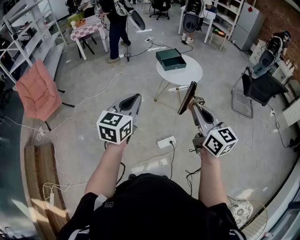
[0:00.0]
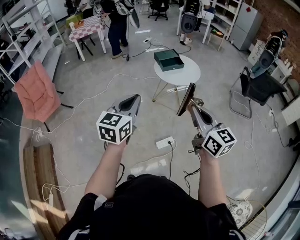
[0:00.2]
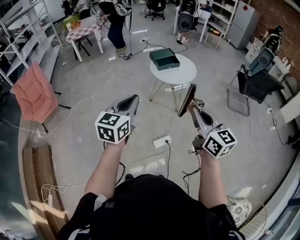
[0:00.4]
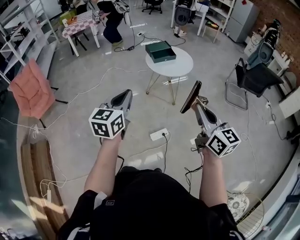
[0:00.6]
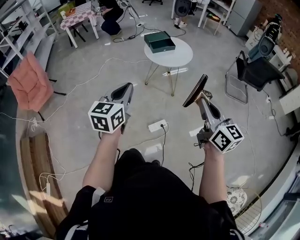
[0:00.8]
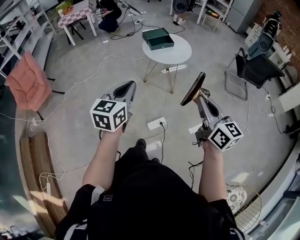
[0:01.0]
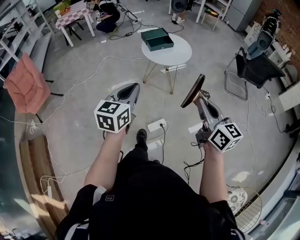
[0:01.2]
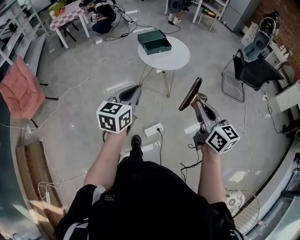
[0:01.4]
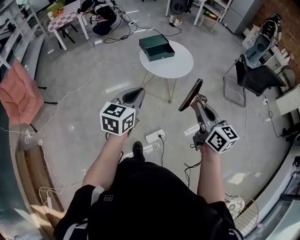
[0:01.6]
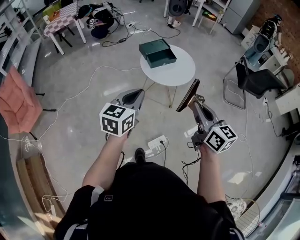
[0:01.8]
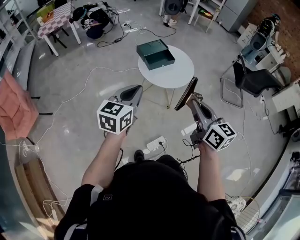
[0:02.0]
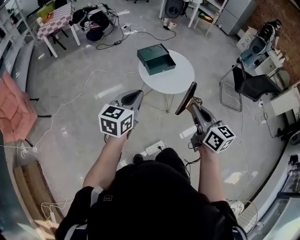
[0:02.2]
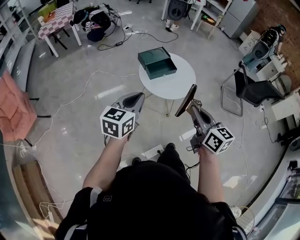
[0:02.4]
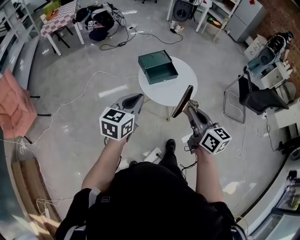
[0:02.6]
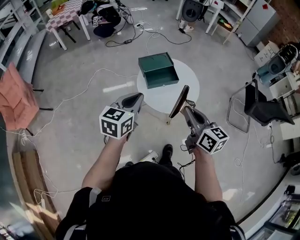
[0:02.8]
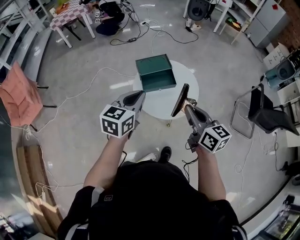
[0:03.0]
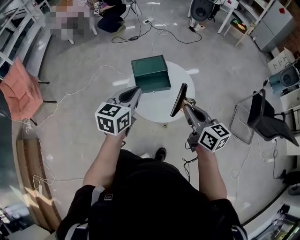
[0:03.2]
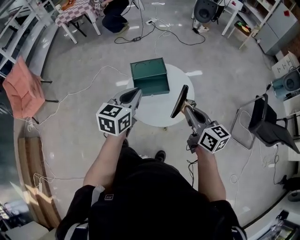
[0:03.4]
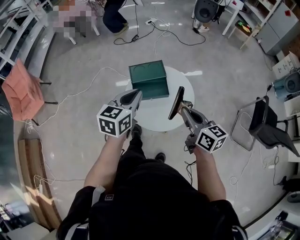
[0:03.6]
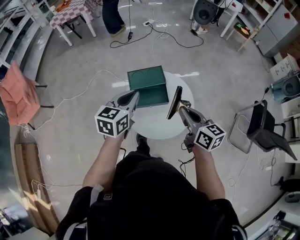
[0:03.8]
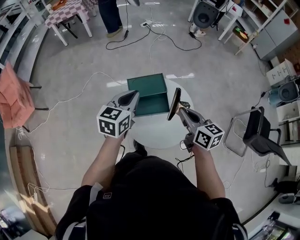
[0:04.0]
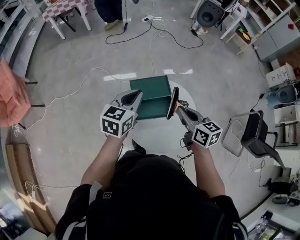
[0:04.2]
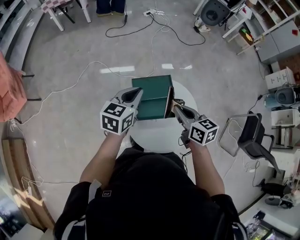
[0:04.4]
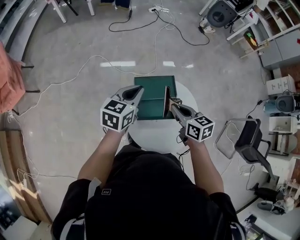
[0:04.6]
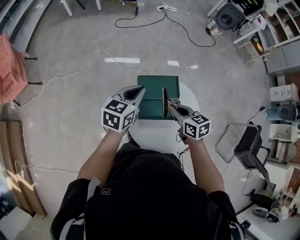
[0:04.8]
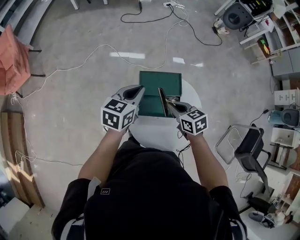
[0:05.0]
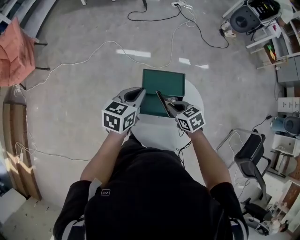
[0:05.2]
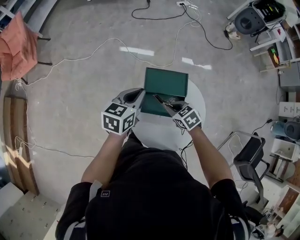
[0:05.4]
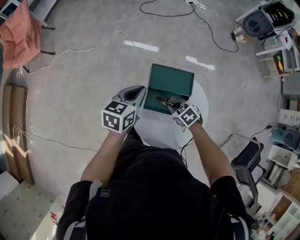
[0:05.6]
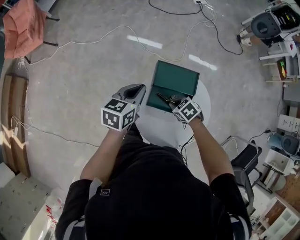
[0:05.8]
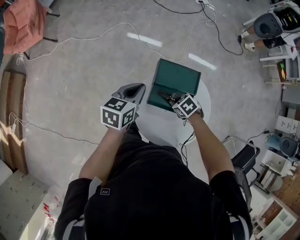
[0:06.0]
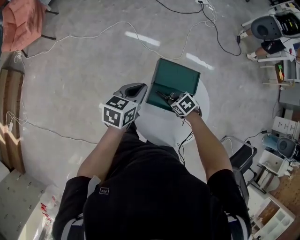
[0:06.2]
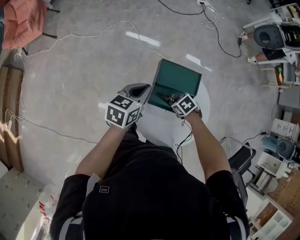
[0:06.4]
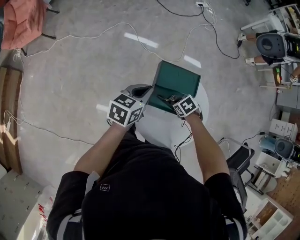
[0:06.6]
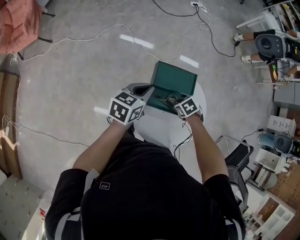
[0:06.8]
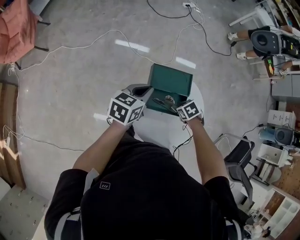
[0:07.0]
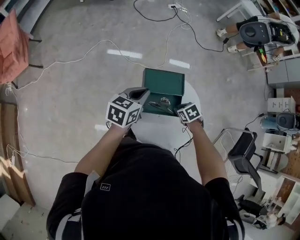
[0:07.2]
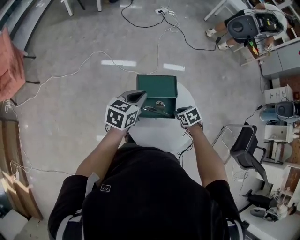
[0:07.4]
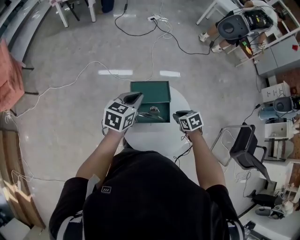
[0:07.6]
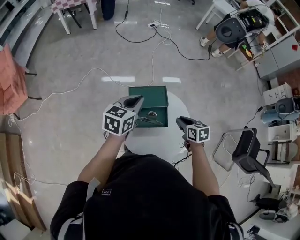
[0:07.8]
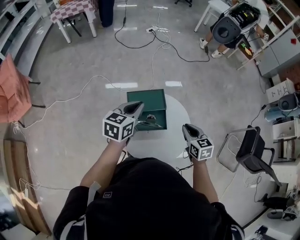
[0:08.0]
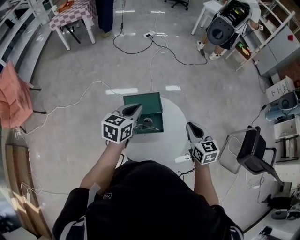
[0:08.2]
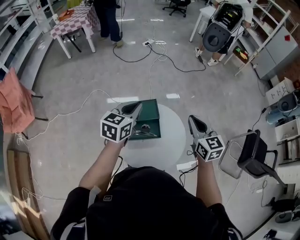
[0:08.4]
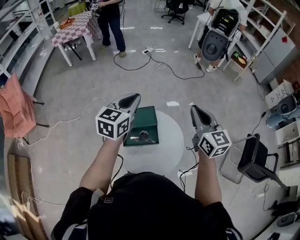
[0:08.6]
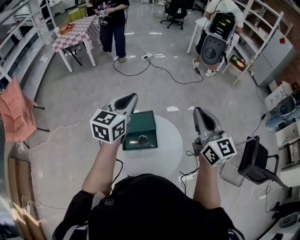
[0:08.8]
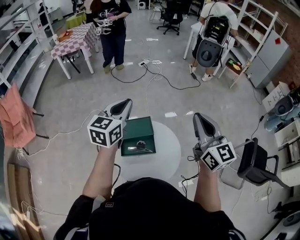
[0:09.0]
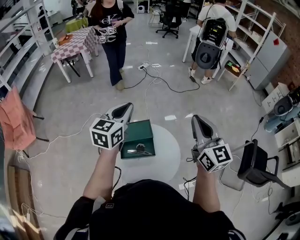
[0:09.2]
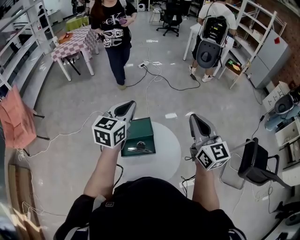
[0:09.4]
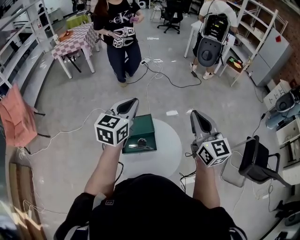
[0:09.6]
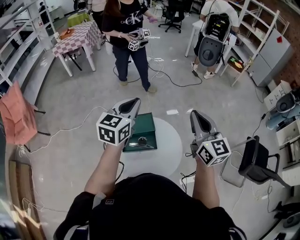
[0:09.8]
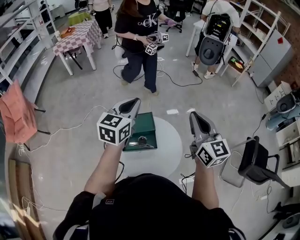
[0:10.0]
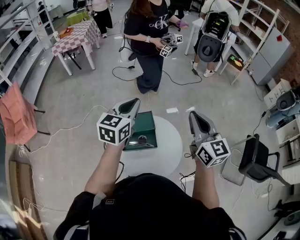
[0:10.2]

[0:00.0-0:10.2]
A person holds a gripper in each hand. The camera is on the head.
0:00.0 to 0:01.4: The right gripper moves to the right and downward, about 10 cm. The left gripper travels to the right, downward and forward by about 15 cm.
0:01.4 to 0:03.0: The grippers both shift forward by some 40 cm.
0:03.0 to 0:04.4: The two grippers go some 25 cm forward. The right gripper swivels some 20 degrees.
0:04.4 to 0:05.8: The left gripper moves downward, about 10 cm, and rotates roughly 20 degrees. Meanwhile the right gripper moves downward, approximately 20 cm, and points its fingers roughly 40 degrees further downward.
0:05.8 to 0:07.2: The right gripper shifts by approximately 5 cm, and turns by roughly 30 degrees.
0:07.2 to 0:08.8: The left gripper travels upward by approximately 25 cm, and turns by approximately 30 degrees; the right gripper is displaced upward by roughly 40 cm, and angles its fingers upward, by about 80 degrees.
0:08.8 to 0:10.2: The grippers stay close to where they were, moving slightly.

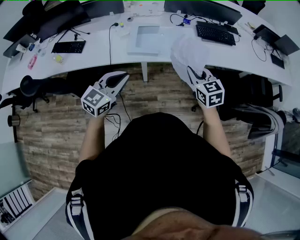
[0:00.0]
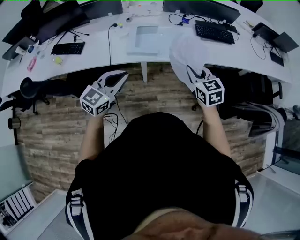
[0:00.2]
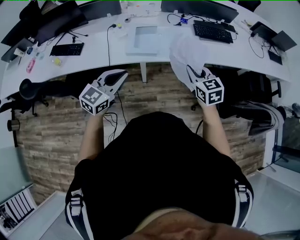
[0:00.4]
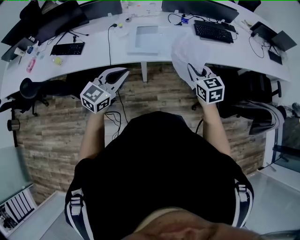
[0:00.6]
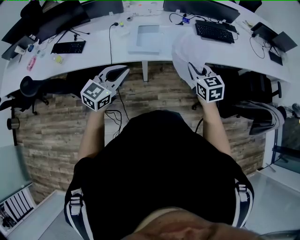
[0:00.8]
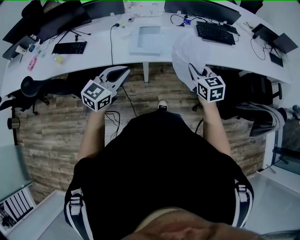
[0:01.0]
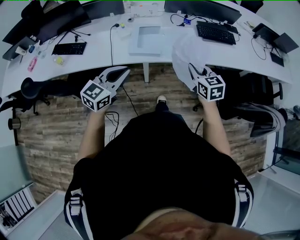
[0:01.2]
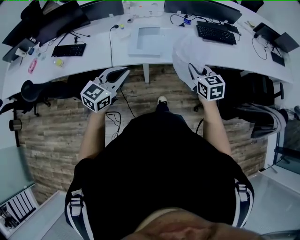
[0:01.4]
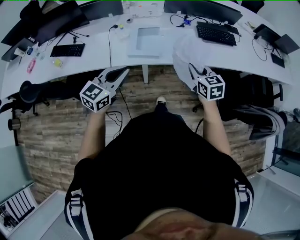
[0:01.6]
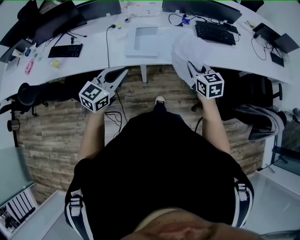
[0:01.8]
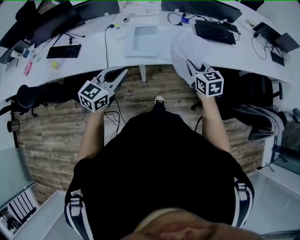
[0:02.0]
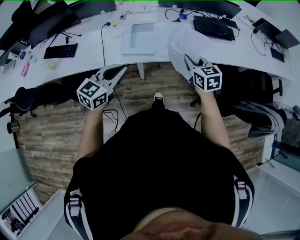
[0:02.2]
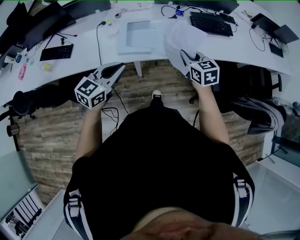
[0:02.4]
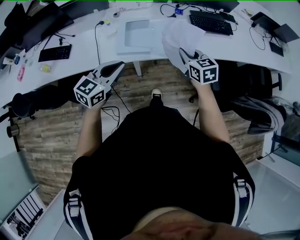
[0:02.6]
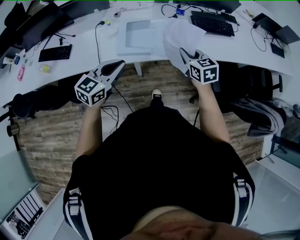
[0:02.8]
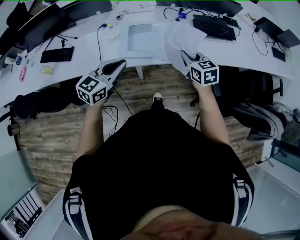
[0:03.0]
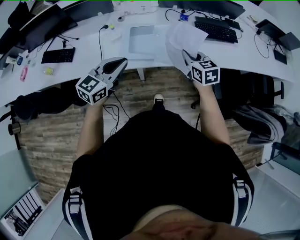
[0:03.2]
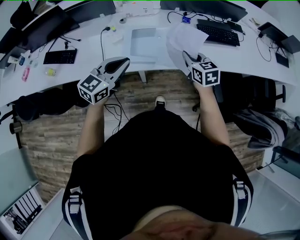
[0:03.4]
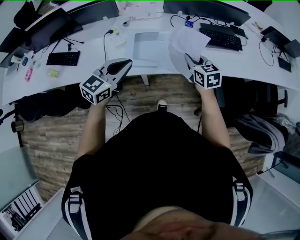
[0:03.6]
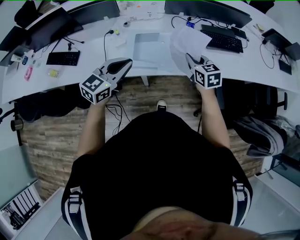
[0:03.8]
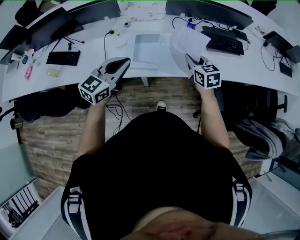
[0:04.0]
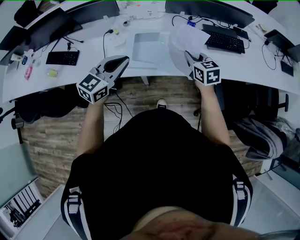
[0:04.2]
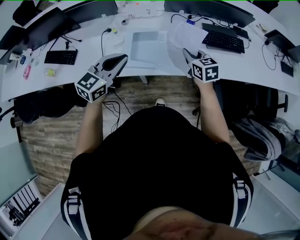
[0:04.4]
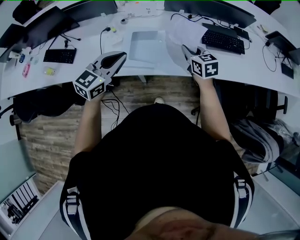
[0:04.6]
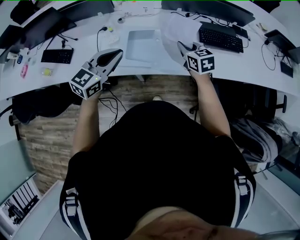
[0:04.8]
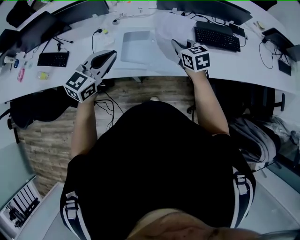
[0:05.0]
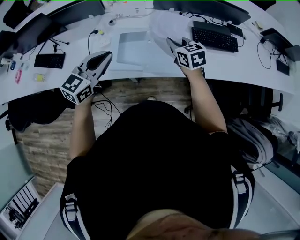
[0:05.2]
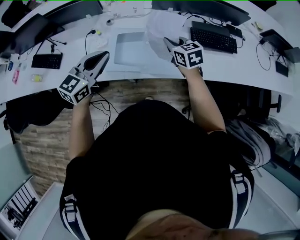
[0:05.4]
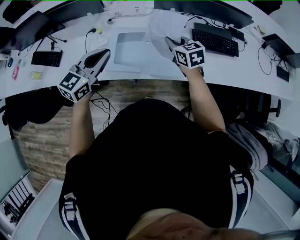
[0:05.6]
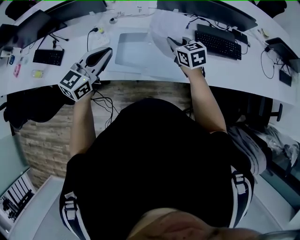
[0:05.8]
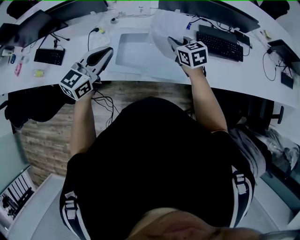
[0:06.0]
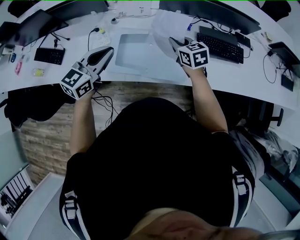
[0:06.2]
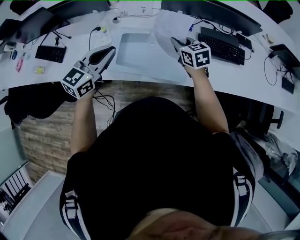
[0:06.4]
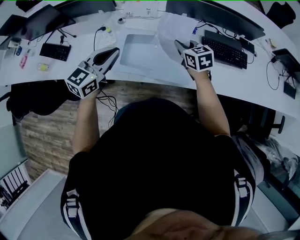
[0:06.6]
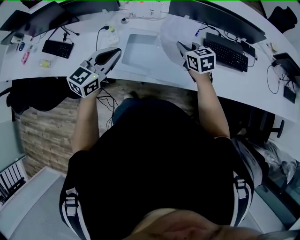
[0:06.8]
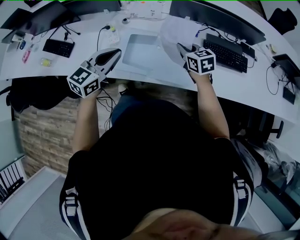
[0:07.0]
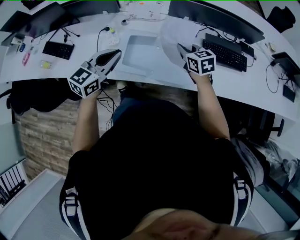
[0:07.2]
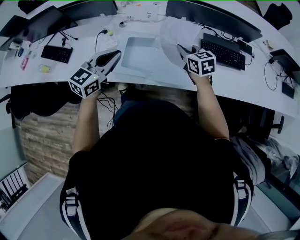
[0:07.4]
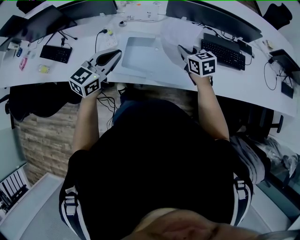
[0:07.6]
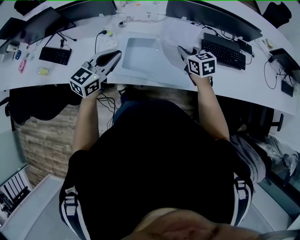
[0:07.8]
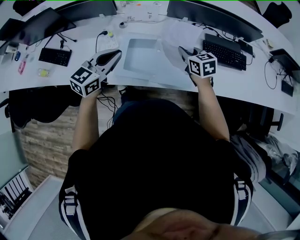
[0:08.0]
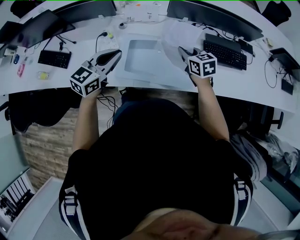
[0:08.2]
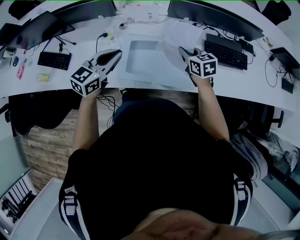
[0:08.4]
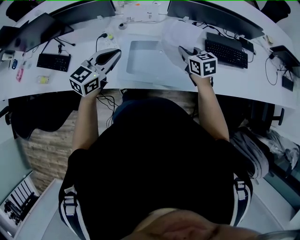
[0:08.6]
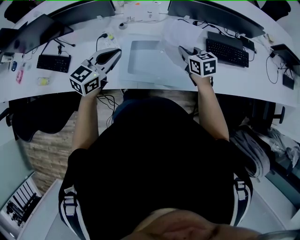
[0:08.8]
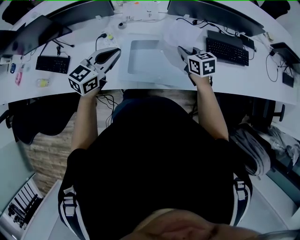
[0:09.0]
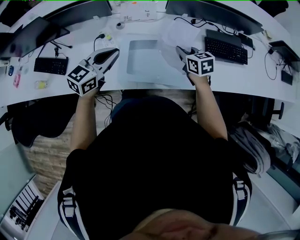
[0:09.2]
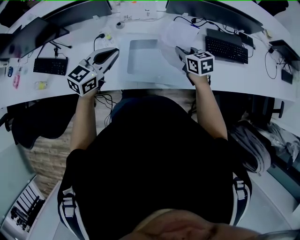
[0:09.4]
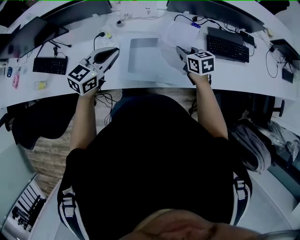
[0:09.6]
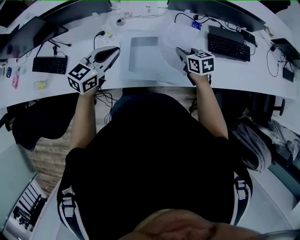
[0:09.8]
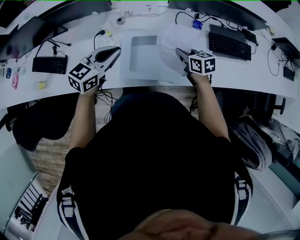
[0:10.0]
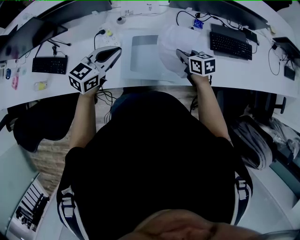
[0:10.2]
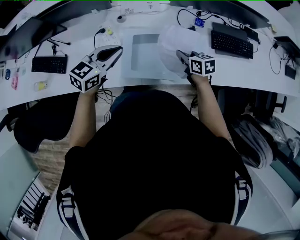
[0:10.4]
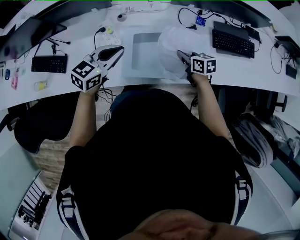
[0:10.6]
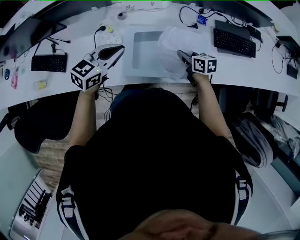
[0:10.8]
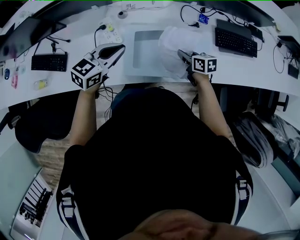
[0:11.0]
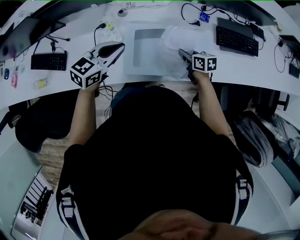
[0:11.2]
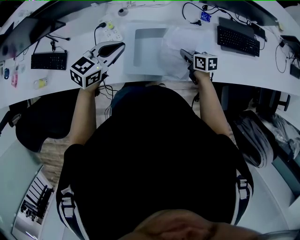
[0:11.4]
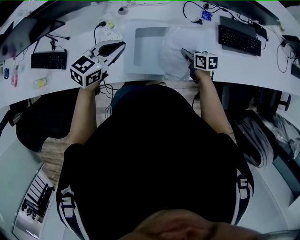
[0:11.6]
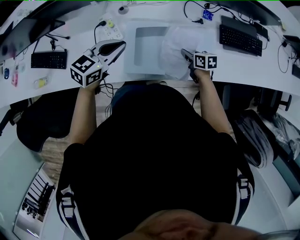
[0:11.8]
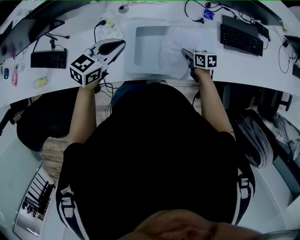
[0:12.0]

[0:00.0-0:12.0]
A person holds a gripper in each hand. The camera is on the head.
0:00.0 to 0:01.6: The right gripper changes place by some 5 cm.
0:01.6 to 0:03.0: Both grippers travel together forward, some 10 cm.
0:03.0 to 0:04.4: Both grippers move forward, about 10 cm.
0:04.4 to 0:06.0: Both grippers travel together forward, roughly 10 cm.
0:06.0 to 0:07.6: The grippers move only a little.
0:07.6 to 0:09.0: The left gripper moves forward and to the left, roughly 10 cm. Meanwhile the right gripper changes place by roughly 5 cm.
0:09.0 to 0:10.4: The left gripper shifts by some 5 cm. The right gripper goes roughly 10 cm downward.
0:10.4 to 0:12.0: The right gripper is displaced downward by some 10 cm.

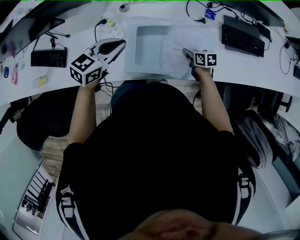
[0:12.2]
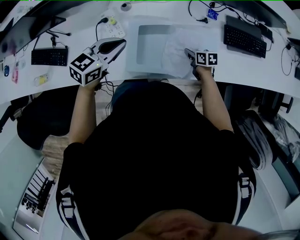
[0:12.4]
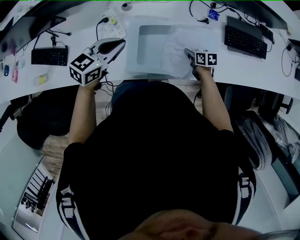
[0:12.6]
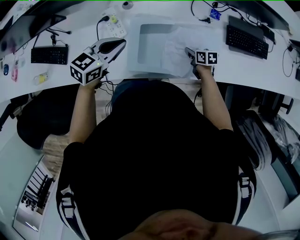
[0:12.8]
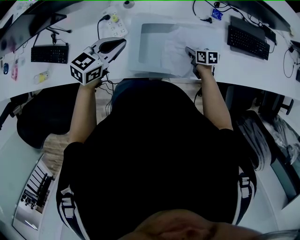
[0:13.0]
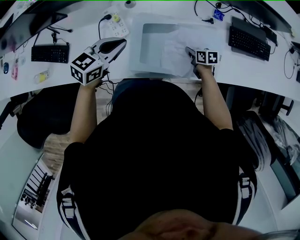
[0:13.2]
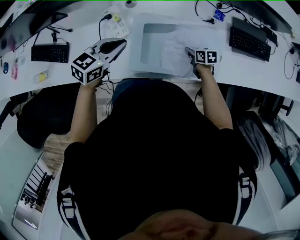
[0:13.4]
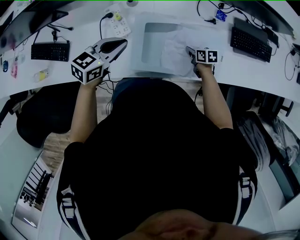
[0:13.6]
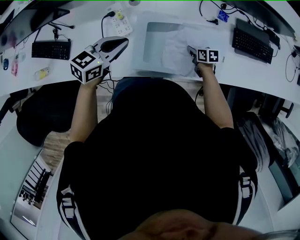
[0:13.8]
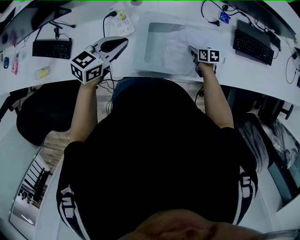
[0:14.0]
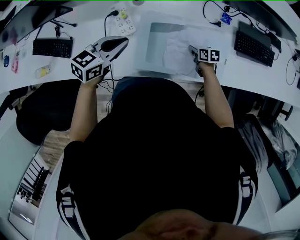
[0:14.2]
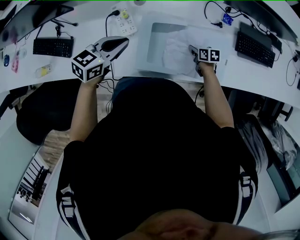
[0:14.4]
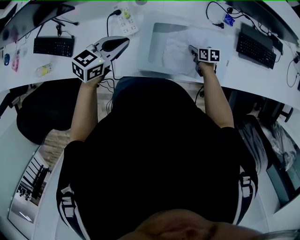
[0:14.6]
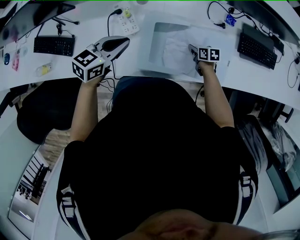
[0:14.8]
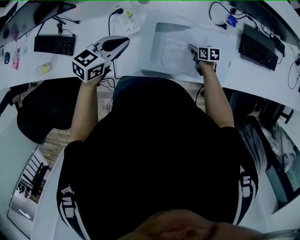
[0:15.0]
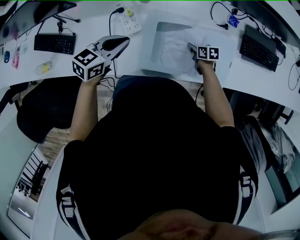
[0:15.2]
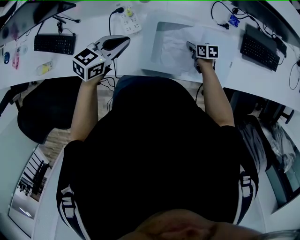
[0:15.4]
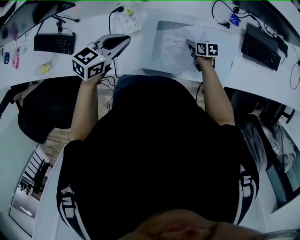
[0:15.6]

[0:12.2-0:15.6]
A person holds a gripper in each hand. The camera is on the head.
0:12.2 to 0:13.8: The right gripper goes roughly 5 cm downward.
0:13.8 to 0:15.6: The right gripper is displaced to the left by approximately 5 cm.
